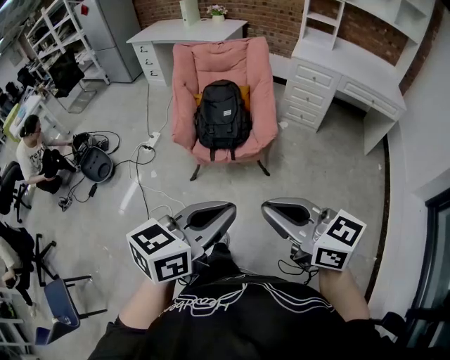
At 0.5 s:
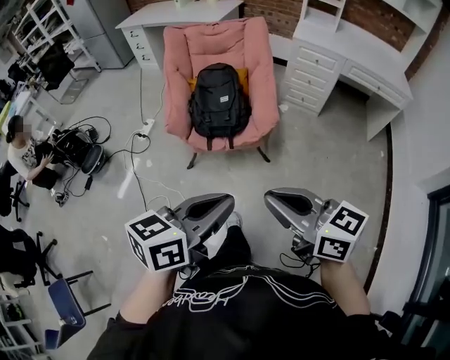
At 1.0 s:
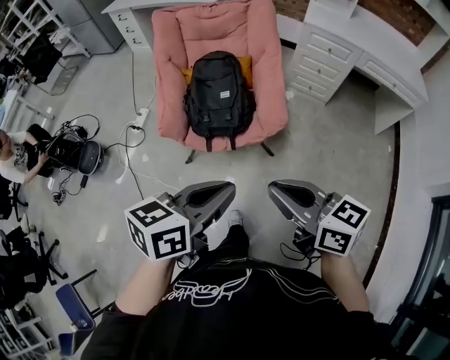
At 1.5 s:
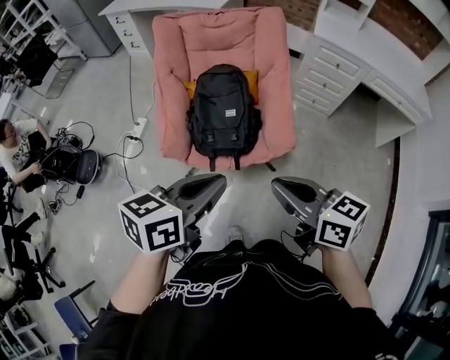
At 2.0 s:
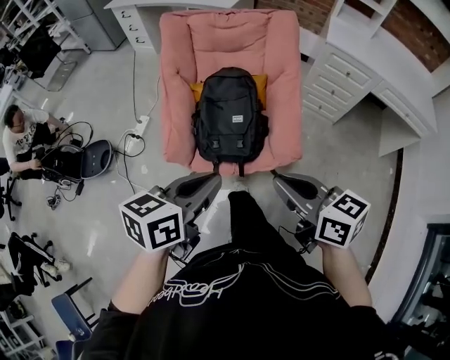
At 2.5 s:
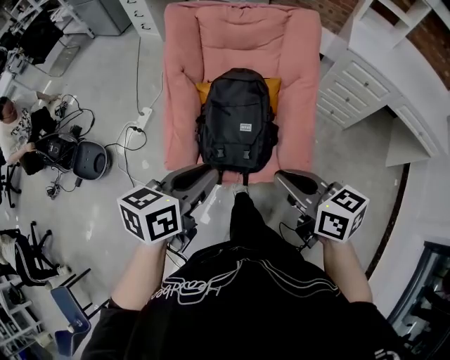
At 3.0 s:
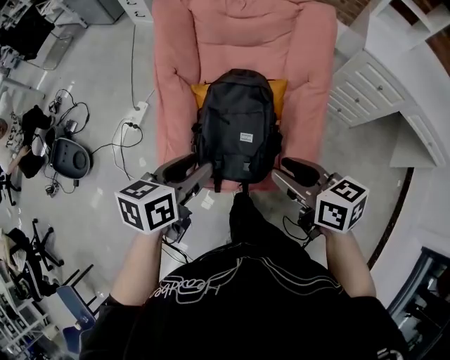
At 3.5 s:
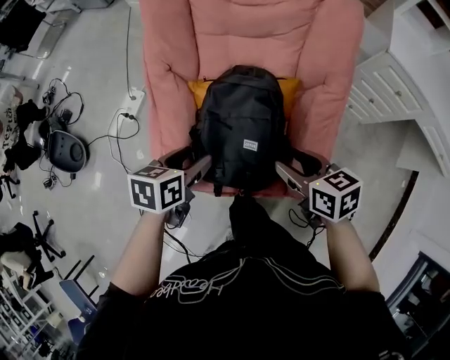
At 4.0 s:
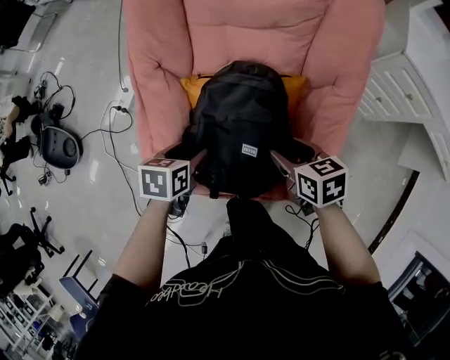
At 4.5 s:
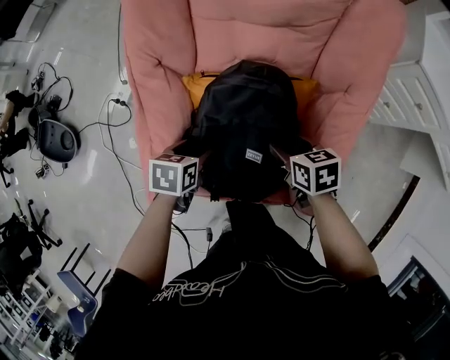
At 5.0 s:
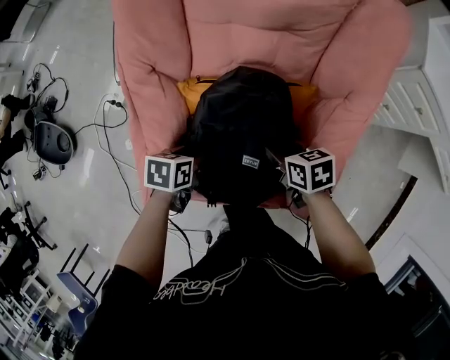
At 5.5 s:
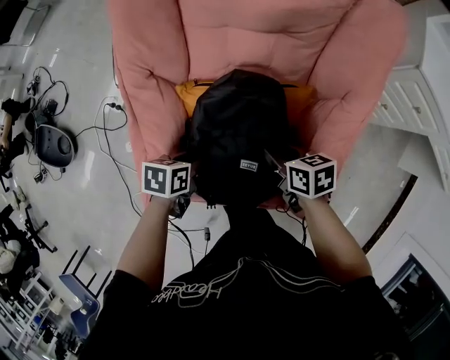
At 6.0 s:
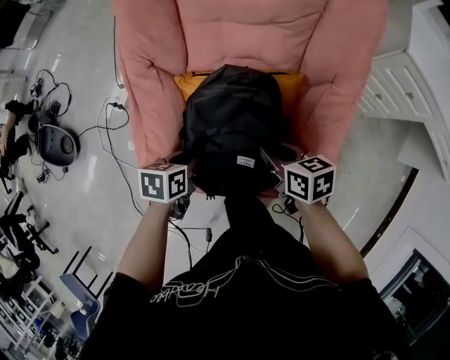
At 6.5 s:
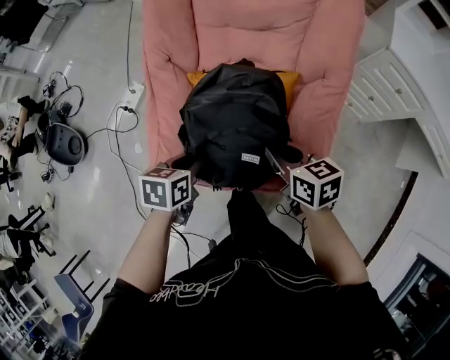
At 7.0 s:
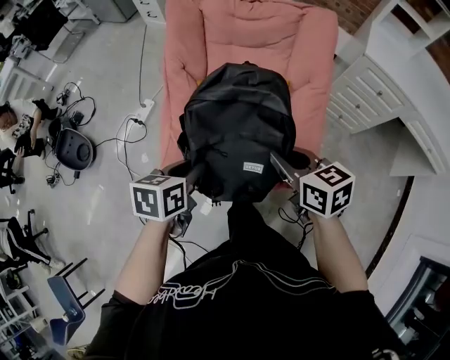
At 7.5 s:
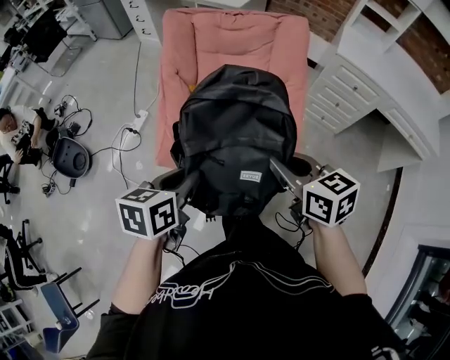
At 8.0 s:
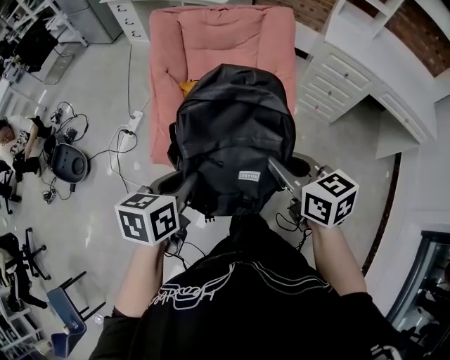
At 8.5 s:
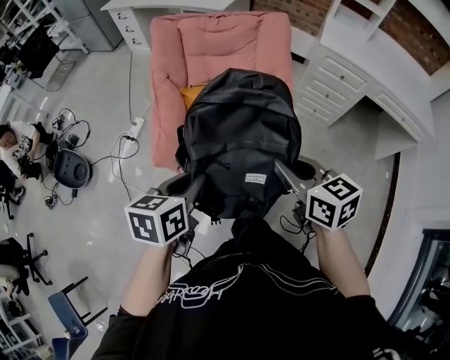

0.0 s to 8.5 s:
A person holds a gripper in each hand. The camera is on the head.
0.0 to 2.0 s: The grippers both shift forward by about 40 cm.
2.0 to 4.0 s: Both grippers travel together forward and downward, about 40 cm. The right gripper tips its fingers downward by roughly 30 degrees, and opens. The left gripper angles its fingers downward, by approximately 40 degrees, and opens its fingers.
4.0 to 6.5 s: The right gripper shifts roughly 5 cm upward, and closes, while the left gripper moves backward and upward, approximately 10 cm, and closes up.
6.5 to 8.5 s: The left gripper is displaced upward and backward by some 30 cm. Meanwhile the right gripper heads backward and upward, covering some 30 cm.

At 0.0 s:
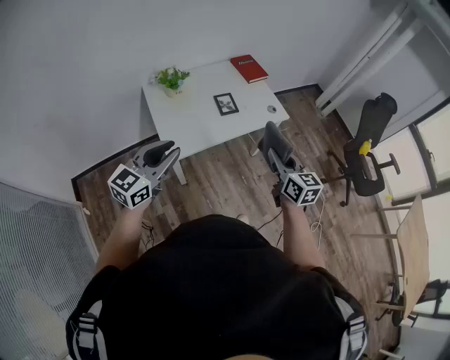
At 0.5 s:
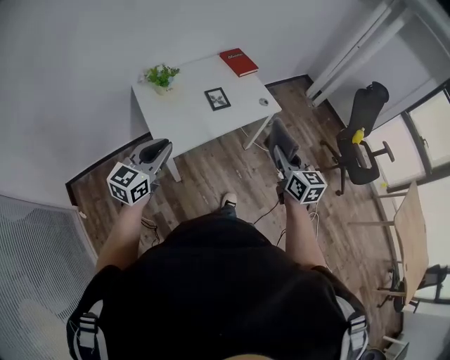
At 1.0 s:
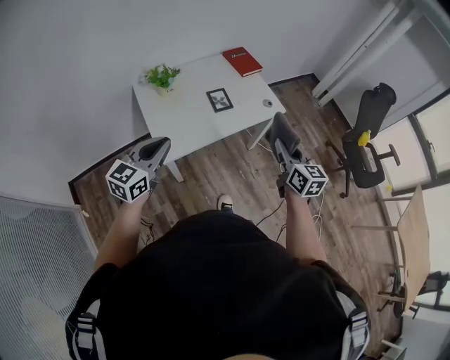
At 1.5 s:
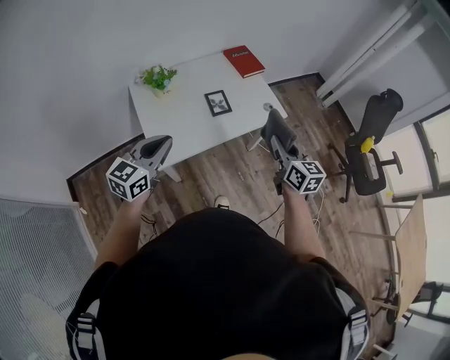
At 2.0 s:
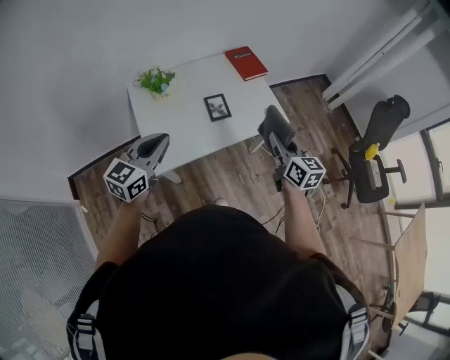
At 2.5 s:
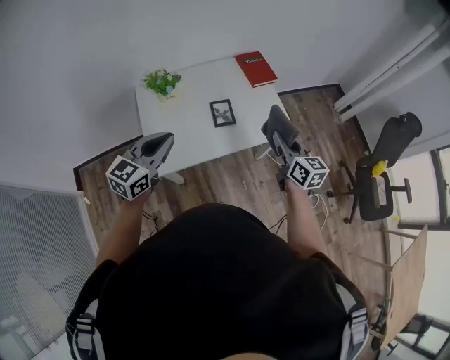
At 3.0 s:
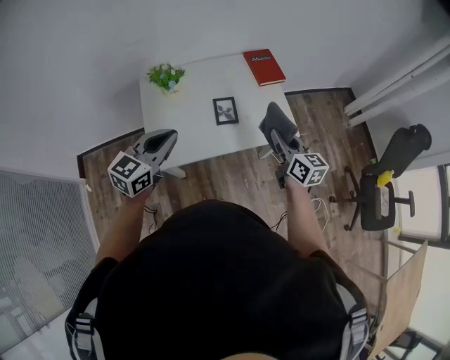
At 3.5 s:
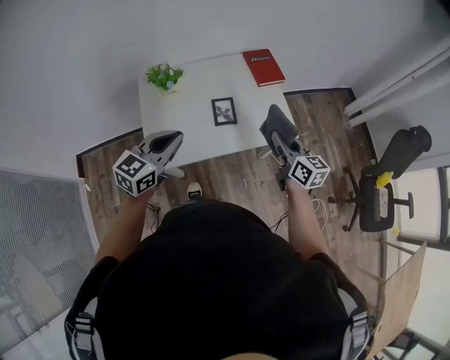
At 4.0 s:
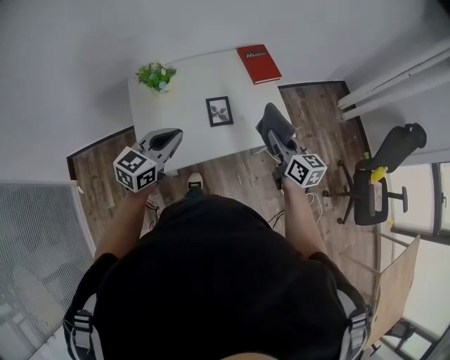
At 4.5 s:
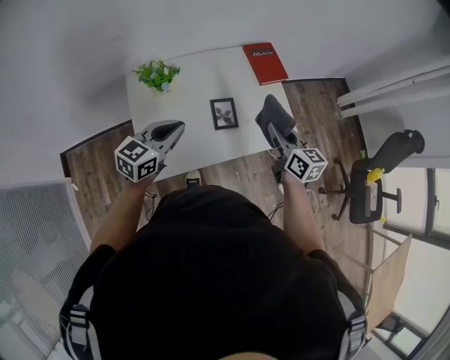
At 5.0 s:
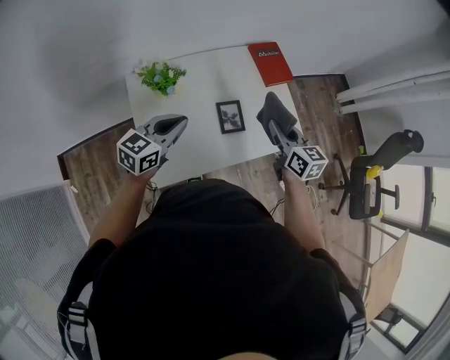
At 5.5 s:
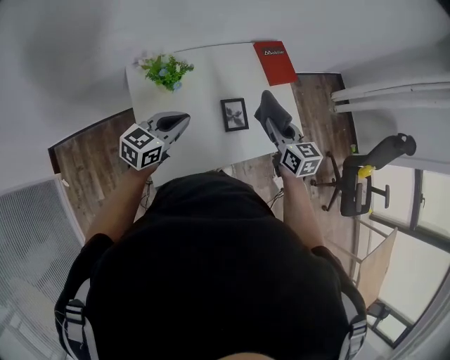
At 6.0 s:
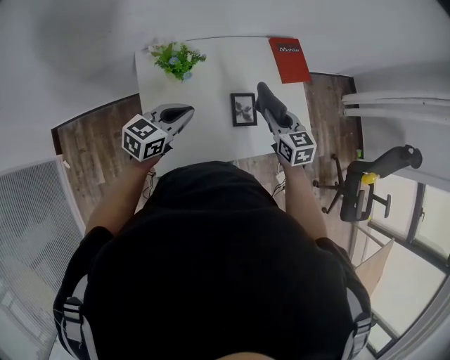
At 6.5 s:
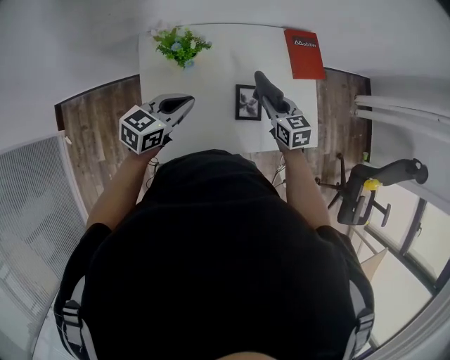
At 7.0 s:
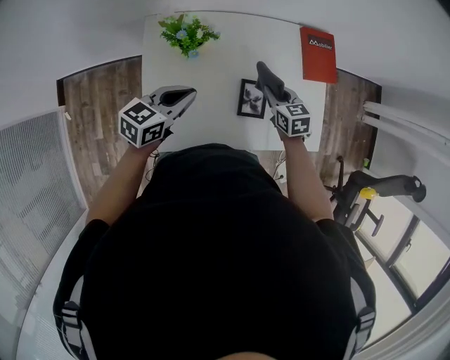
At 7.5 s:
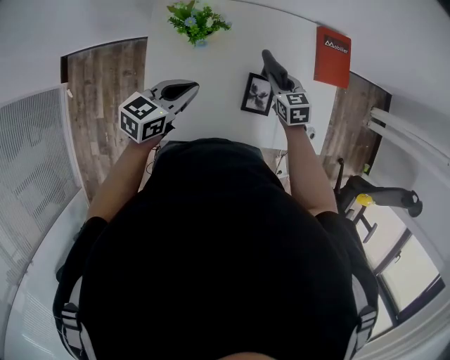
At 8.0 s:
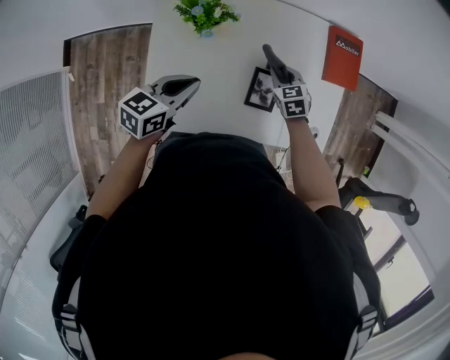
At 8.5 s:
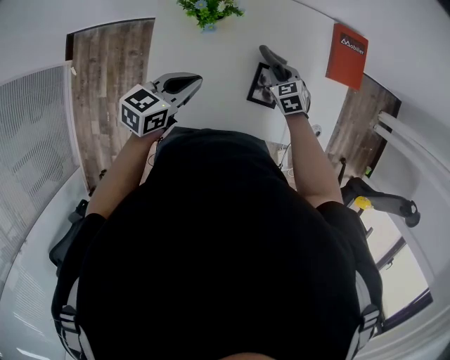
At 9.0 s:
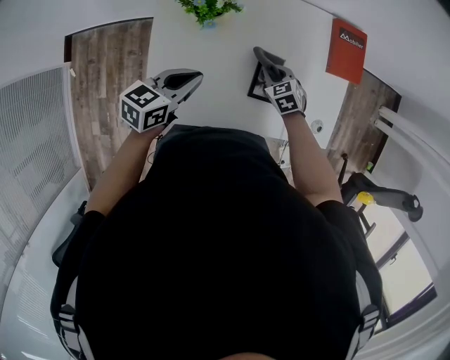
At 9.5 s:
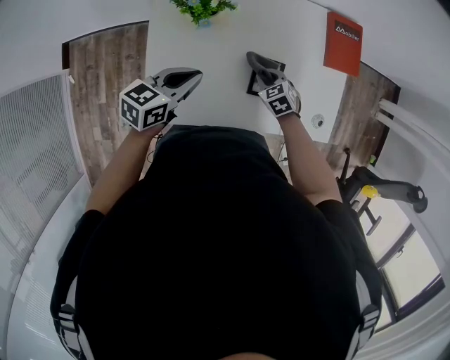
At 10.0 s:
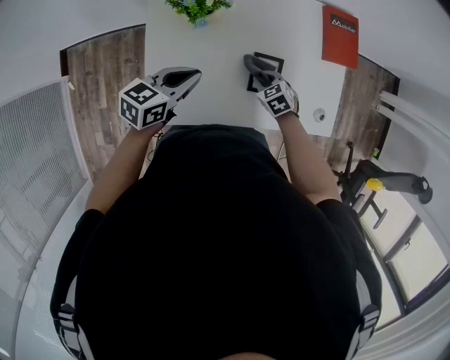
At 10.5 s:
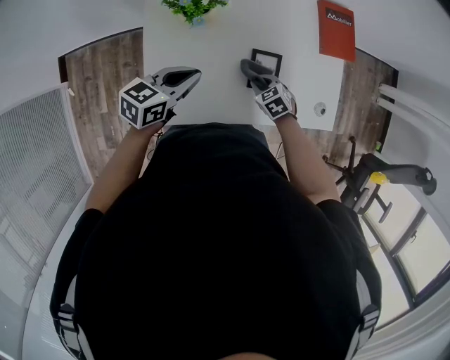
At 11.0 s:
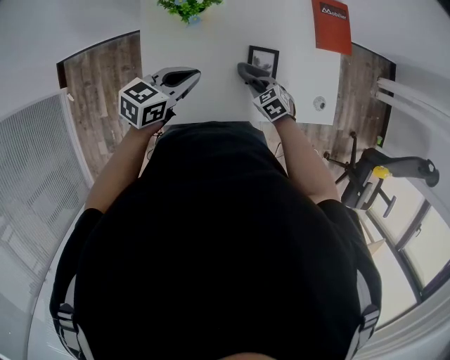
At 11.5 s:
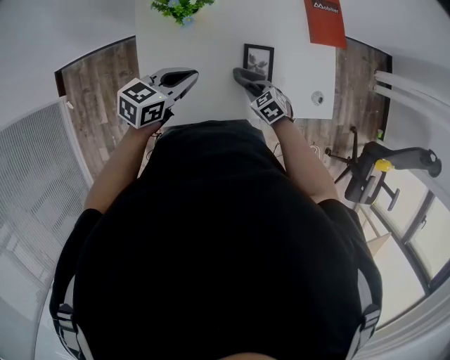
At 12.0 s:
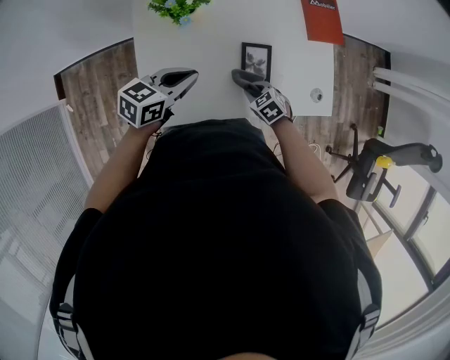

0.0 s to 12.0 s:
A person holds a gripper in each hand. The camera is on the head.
0.0 to 2.0 s: Both grippers travel together forward, roughly 20 cm. The left gripper closes.
2.0 to 4.0 s: The right gripper shifts roughly 10 cm forward, while the left gripper moves forward, to the right and downward, approximately 15 cm.
4.0 to 6.0 s: Both grippers travel together to the left, forward and downward, approximately 20 cm. The right gripper rotates about 30 degrees.
6.0 to 8.0 s: The right gripper goes about 25 cm downward and forward, and rotates roughly 30 degrees. The left gripper goes about 10 cm downward, and turns by roughly 20 degrees.
8.0 to 10.0 s: The right gripper heads backward and downward, covering some 10 cm.
10.0 to 12.0 s: The right gripper shifts about 10 cm backward.

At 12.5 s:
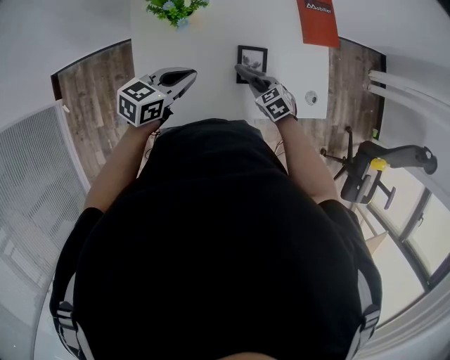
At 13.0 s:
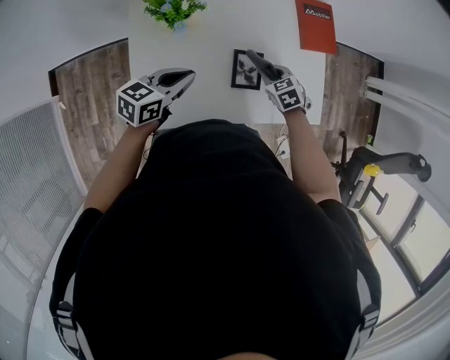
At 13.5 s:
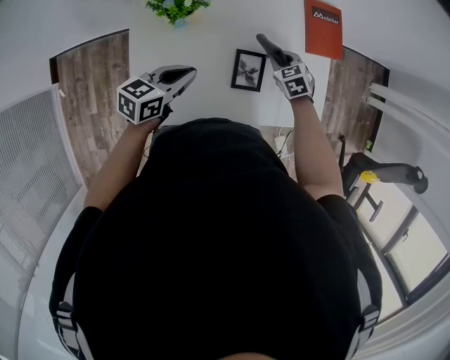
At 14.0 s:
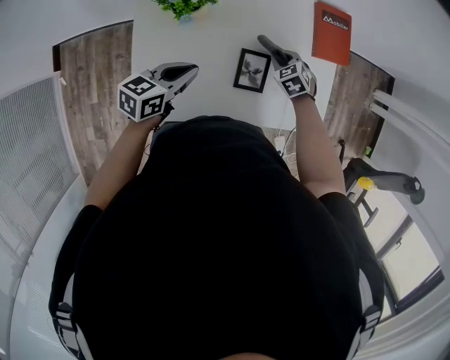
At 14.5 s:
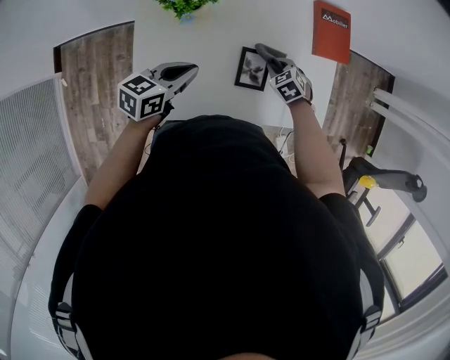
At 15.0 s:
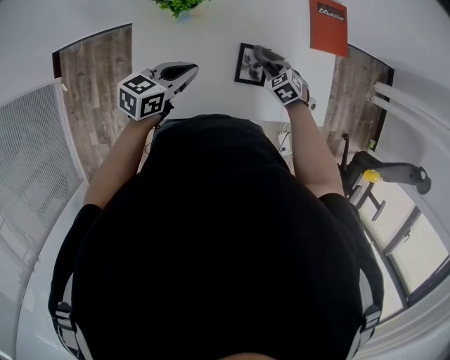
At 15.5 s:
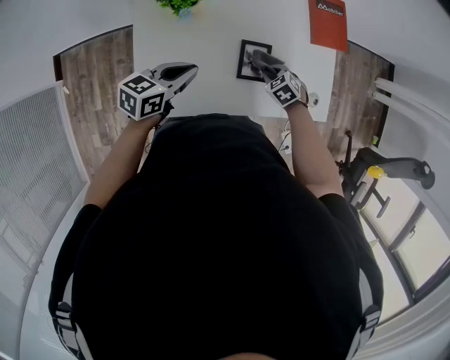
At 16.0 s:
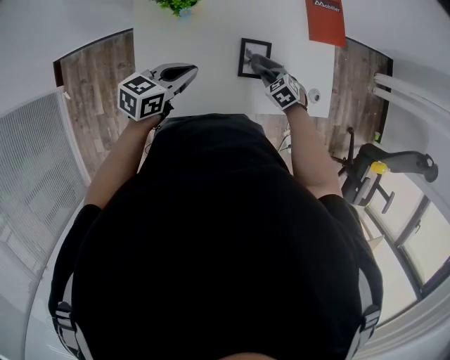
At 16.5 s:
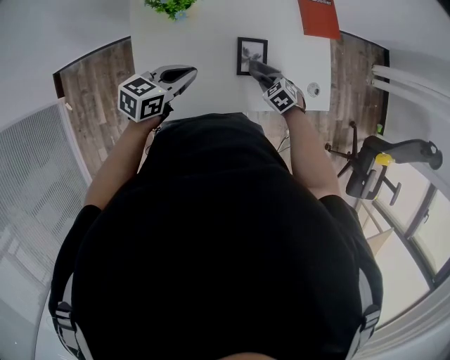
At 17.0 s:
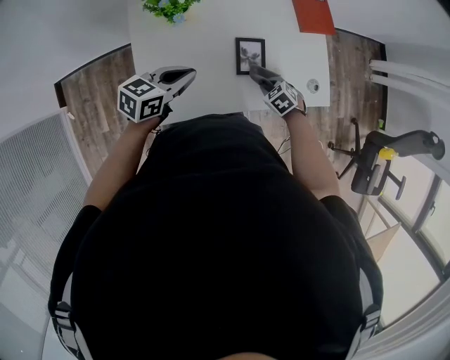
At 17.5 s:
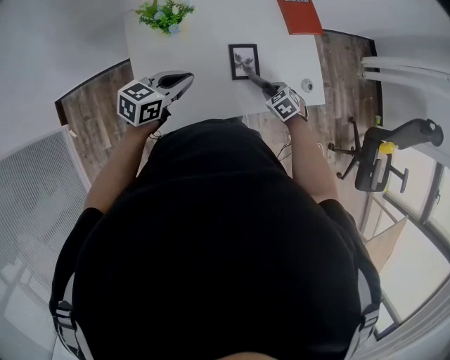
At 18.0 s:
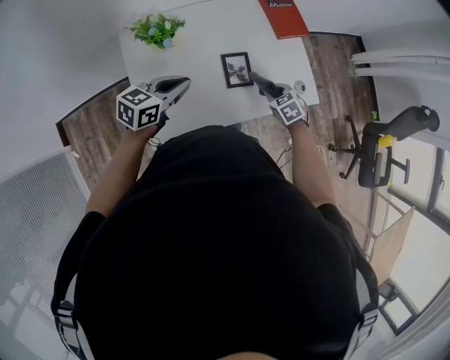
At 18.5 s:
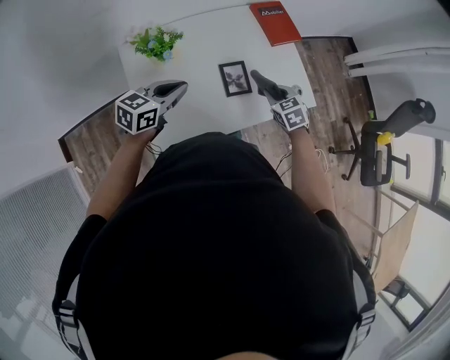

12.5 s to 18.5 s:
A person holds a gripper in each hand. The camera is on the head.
12.5 to 14.5 s: The right gripper is displaced forward by about 10 cm.
14.5 to 16.5 s: The right gripper is displaced backward by about 15 cm.
16.5 to 18.5 s: The left gripper heads upward, covering roughly 5 cm, while the right gripper heads upward, covering some 15 cm, and rotates about 30 degrees.
